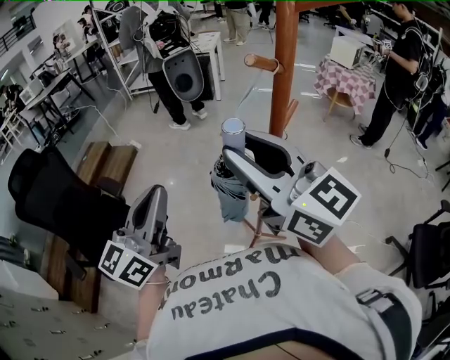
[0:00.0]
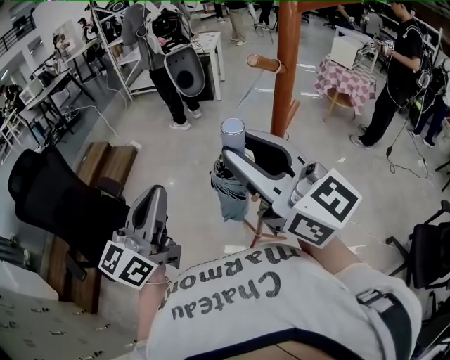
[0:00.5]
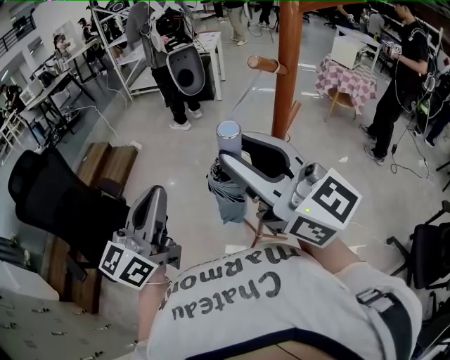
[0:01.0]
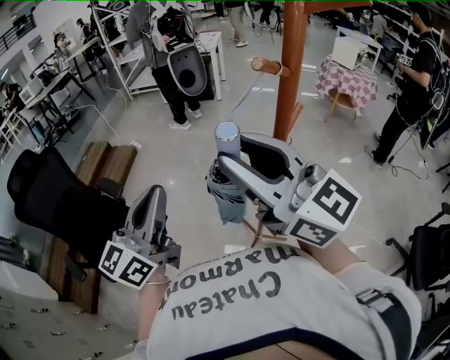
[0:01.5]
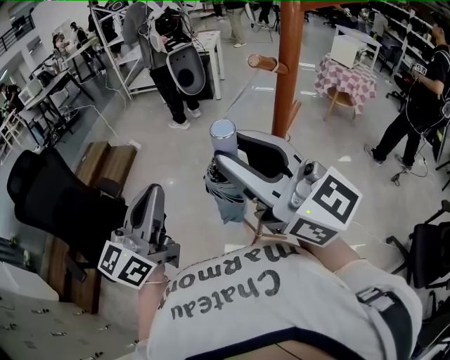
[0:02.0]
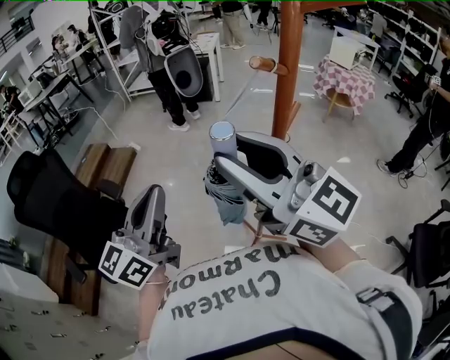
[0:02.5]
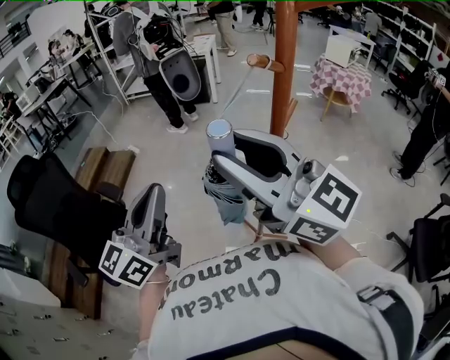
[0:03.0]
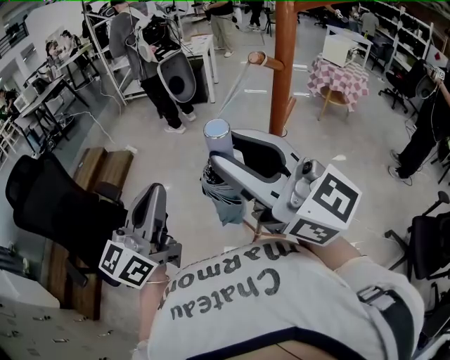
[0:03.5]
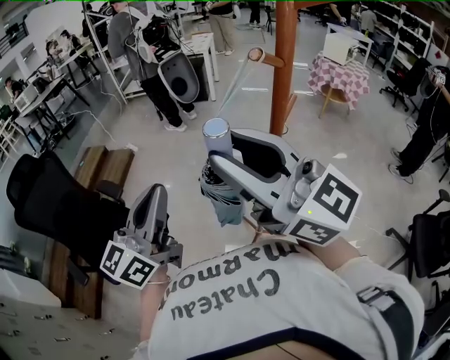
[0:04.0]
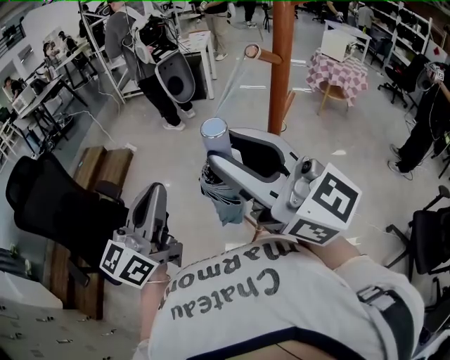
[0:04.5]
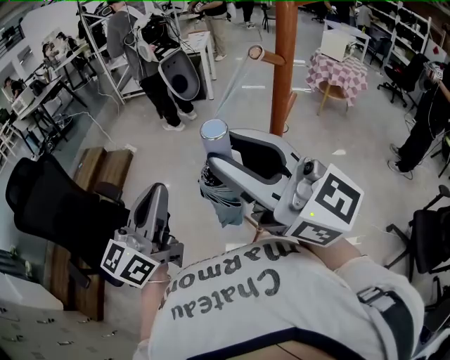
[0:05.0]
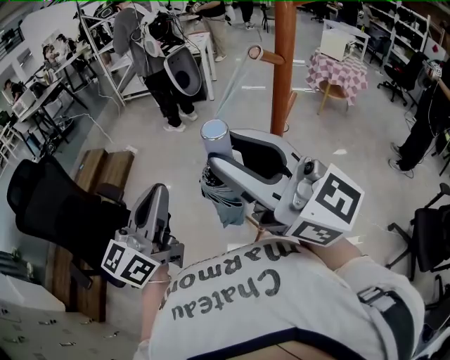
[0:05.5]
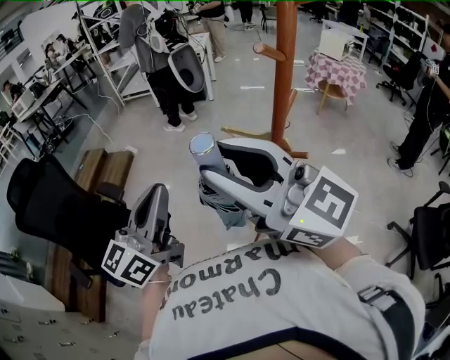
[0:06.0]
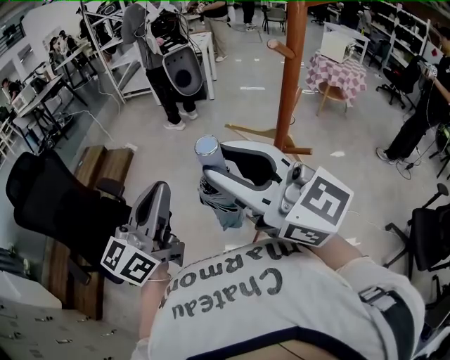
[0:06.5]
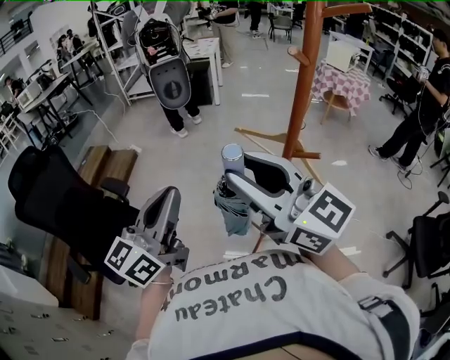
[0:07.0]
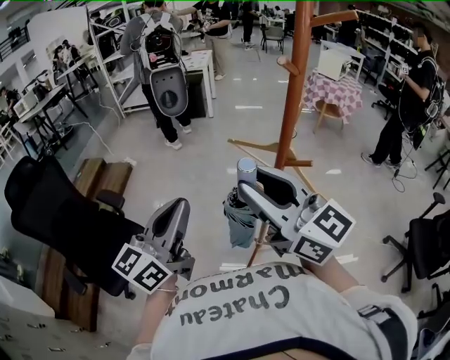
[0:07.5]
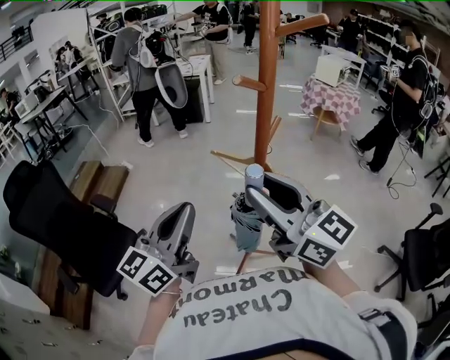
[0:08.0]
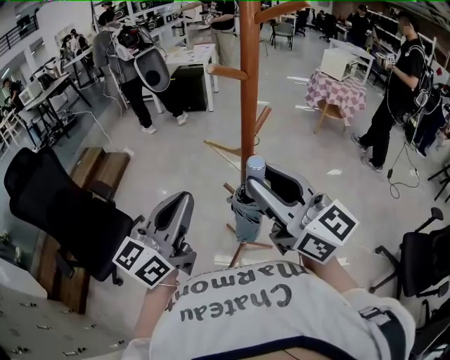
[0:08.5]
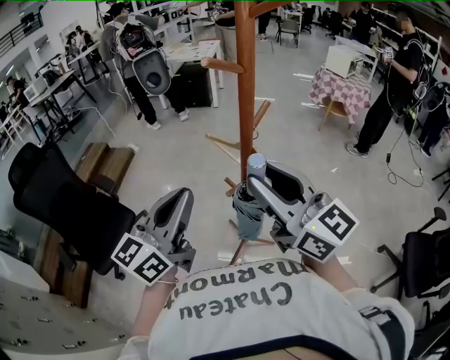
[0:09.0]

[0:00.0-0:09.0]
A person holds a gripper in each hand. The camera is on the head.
0:00.0 to 0:04.5: There are only small adjustments of the grippers.
0:04.5 to 0:07.0: The left gripper moves some 5 cm; the right gripper goes approximately 5 cm downward.
0:07.0 to 0:09.0: Both grippers travel together to the right, approximately 15 cm.

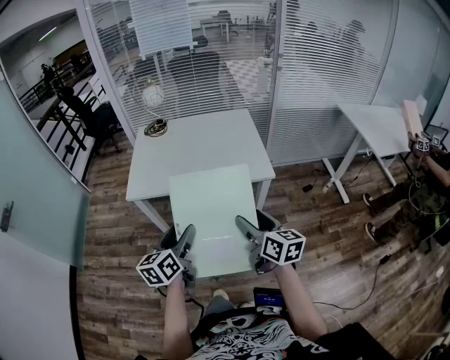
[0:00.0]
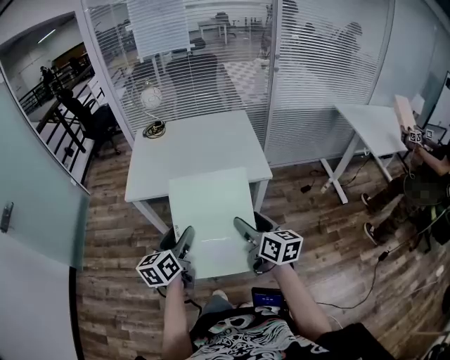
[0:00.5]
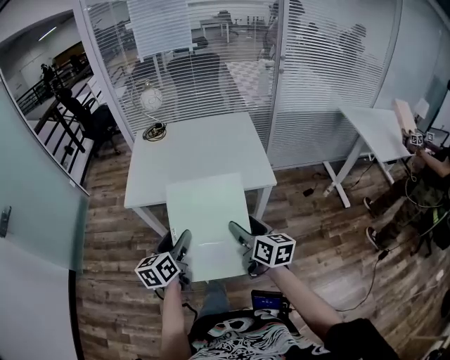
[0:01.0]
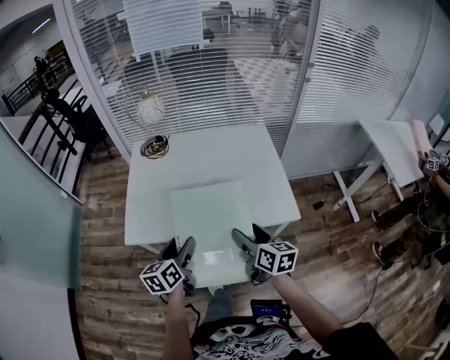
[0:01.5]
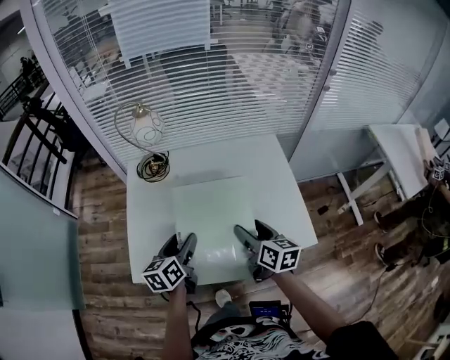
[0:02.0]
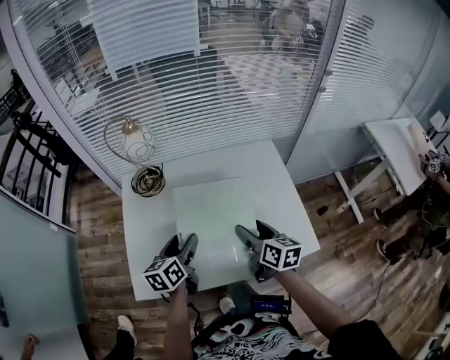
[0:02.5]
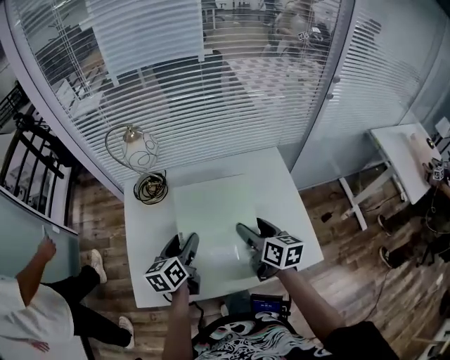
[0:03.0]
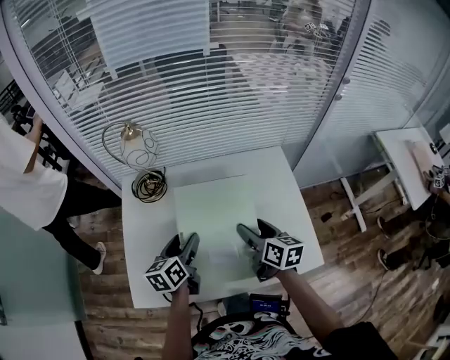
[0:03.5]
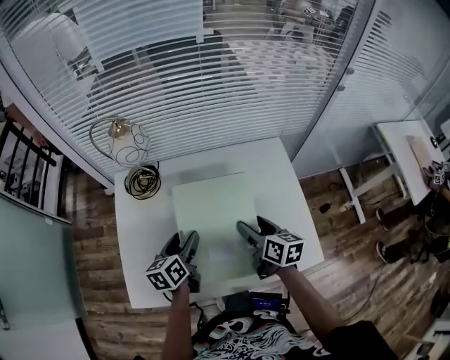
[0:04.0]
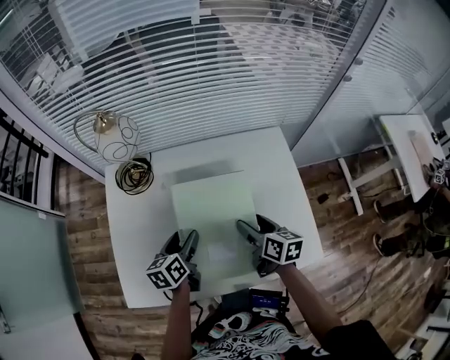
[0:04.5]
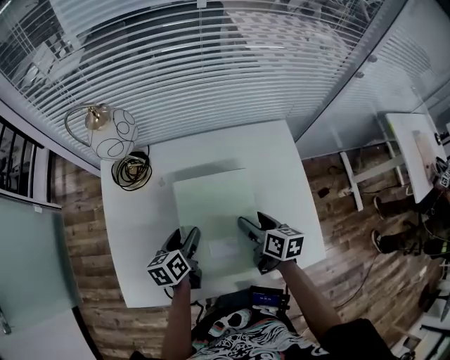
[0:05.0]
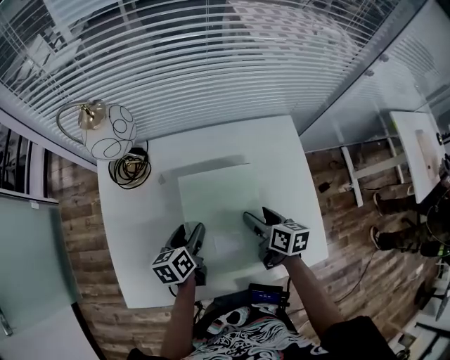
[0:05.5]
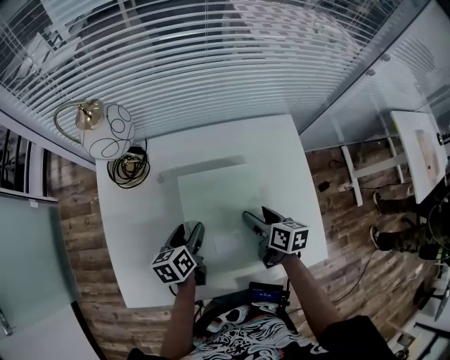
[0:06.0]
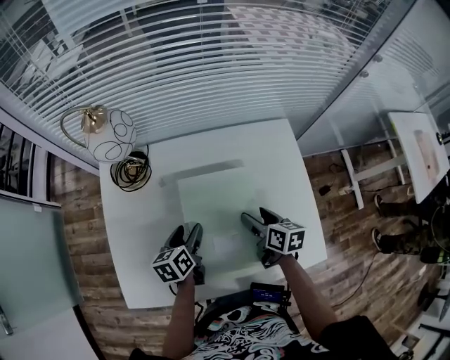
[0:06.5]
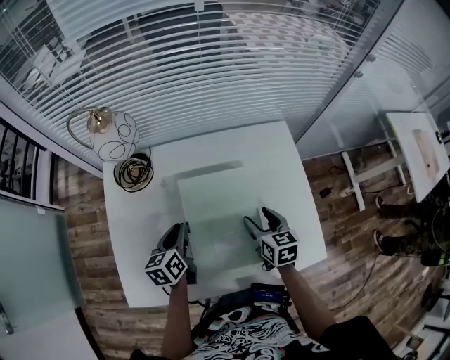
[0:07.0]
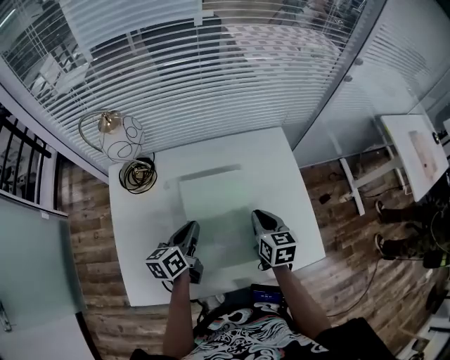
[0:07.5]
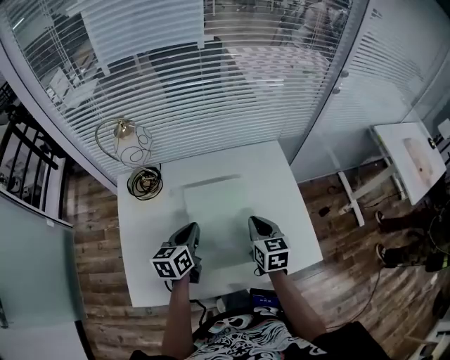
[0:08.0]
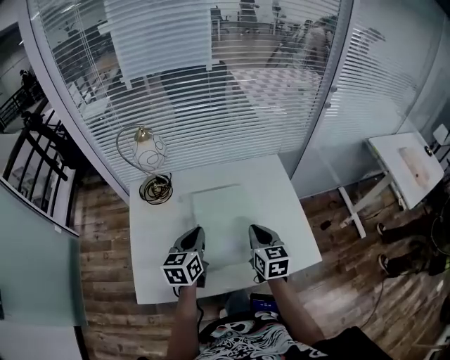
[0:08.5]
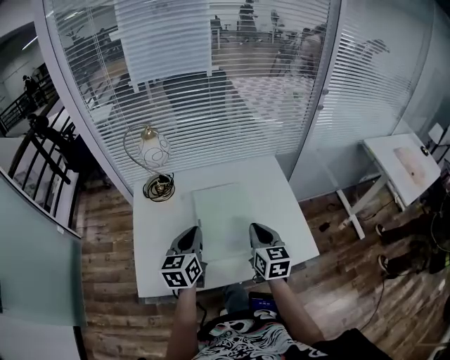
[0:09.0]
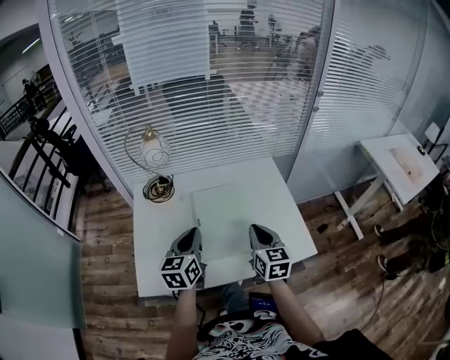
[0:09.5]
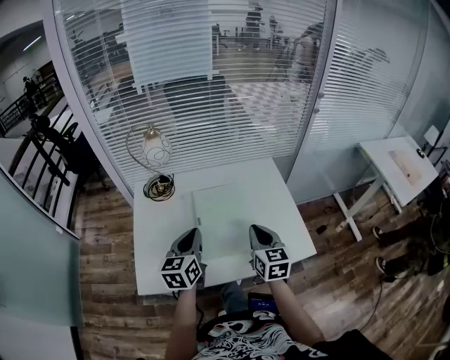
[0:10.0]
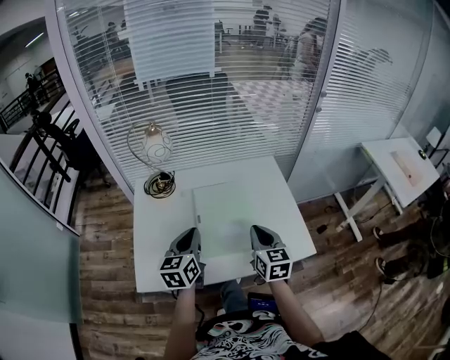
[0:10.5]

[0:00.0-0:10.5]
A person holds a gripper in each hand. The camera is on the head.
0:00.0 to 0:02.0: Both grippers travel together forward, roughly 40 cm.
0:02.0 to 0:04.0: The grippers both shift forward by approximately 10 cm.
0:04.0 to 0:06.5: Both grippers move downward, roughly 10 cm.
0:06.5 to 0:08.5: The left gripper is displaced upward by approximately 15 cm, changes its angle by approximately 30 degrees, and closes up. The right gripper heads upward and backward, covering some 15 cm, changes its angle by about 30 degrees, and closes up.
0:08.5 to 0:10.5: The grippers both shift backward by roughly 5 cm.

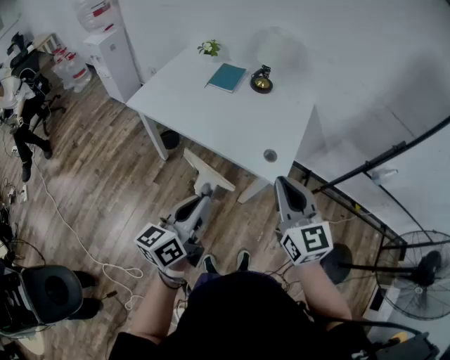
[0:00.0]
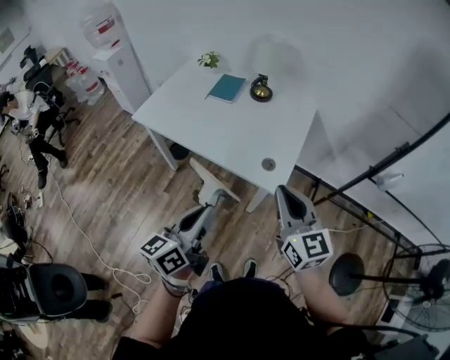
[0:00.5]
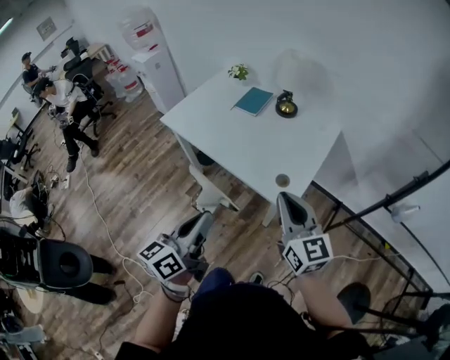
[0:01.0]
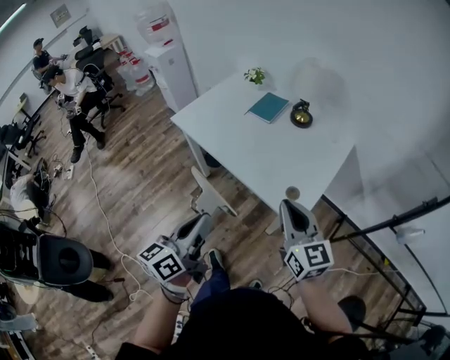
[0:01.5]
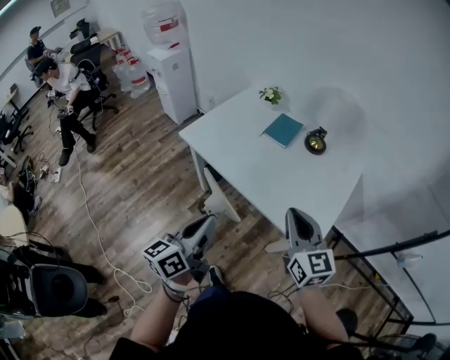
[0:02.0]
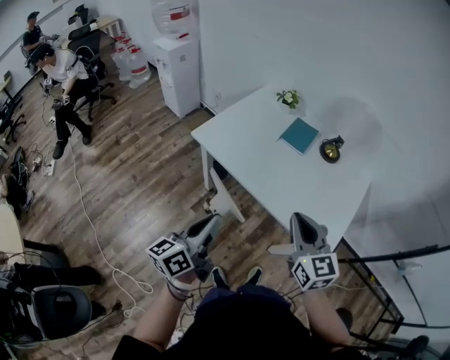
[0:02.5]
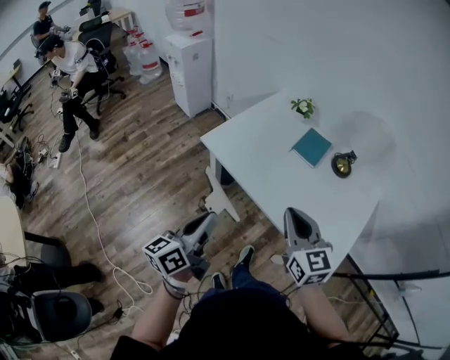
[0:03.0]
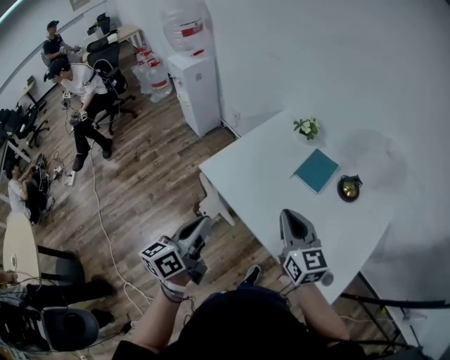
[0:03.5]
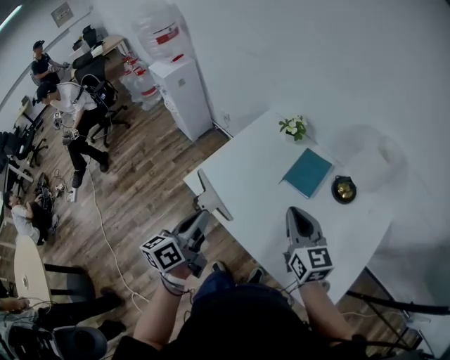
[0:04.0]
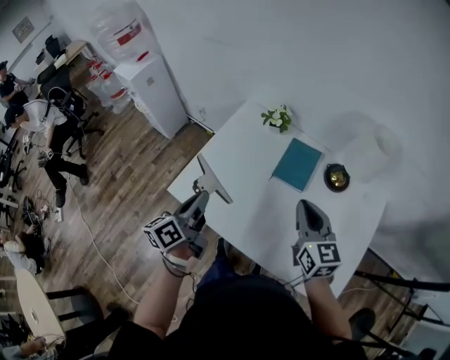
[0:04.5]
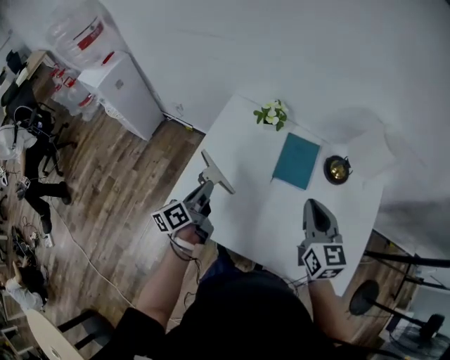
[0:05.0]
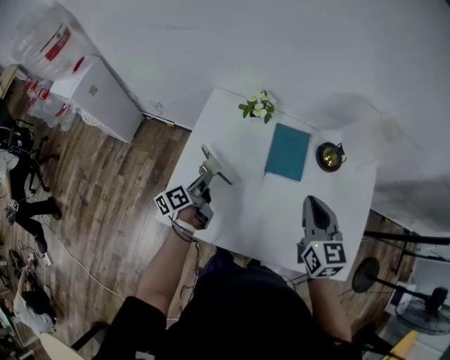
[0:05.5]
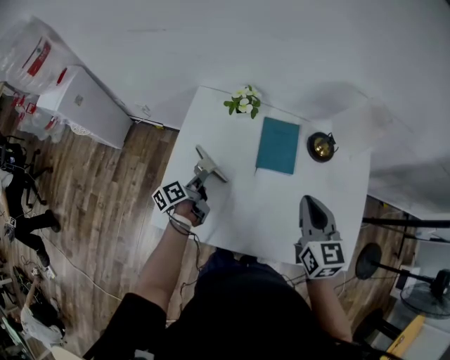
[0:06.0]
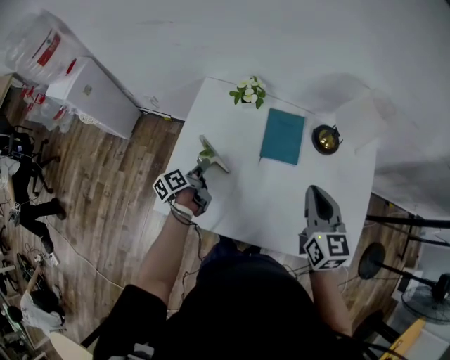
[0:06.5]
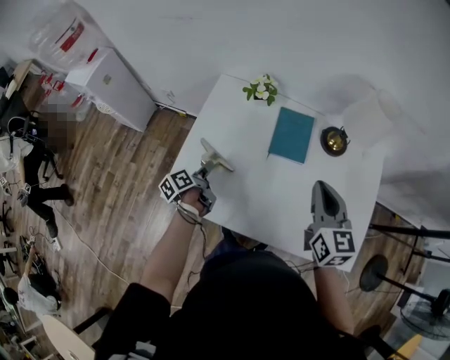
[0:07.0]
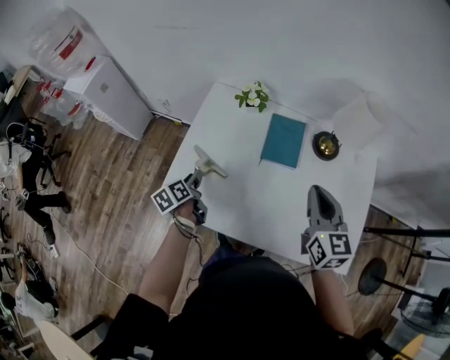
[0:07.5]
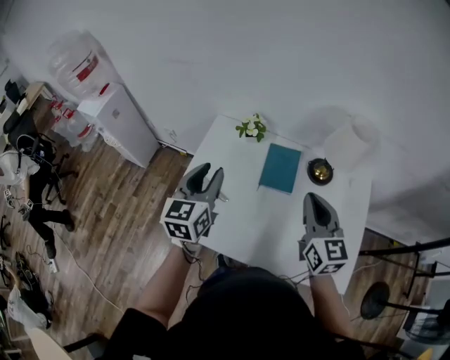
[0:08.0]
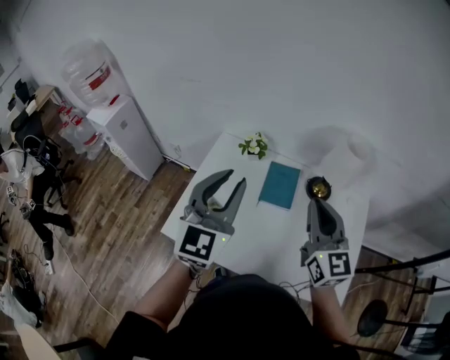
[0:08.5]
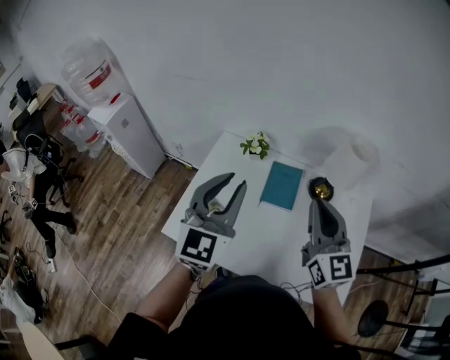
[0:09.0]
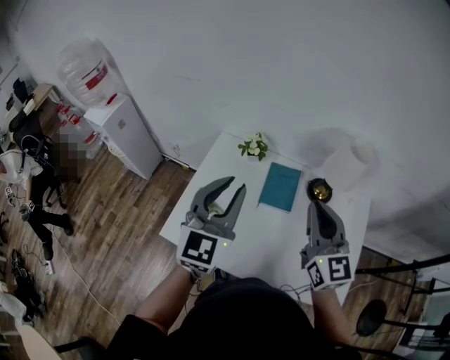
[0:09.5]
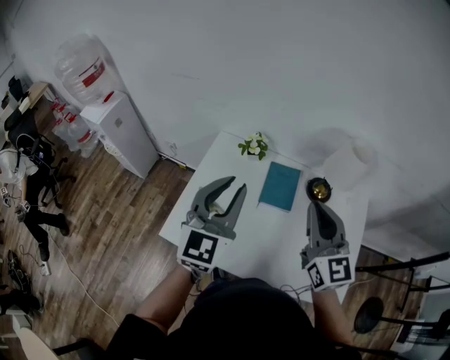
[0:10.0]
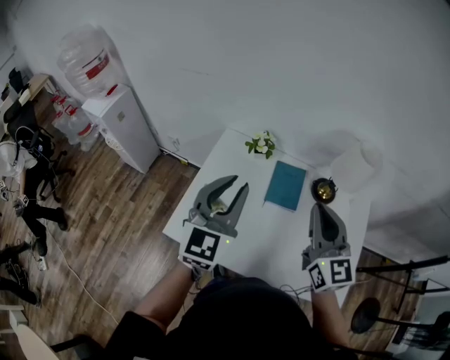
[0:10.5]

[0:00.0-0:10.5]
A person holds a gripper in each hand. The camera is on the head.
0:00.0 to 0:02.0: The two grippers go approximately 15 cm forward and to the left.
0:02.0 to 0:04.0: Both grippers move forward, roughly 35 cm.
0:04.0 to 0:06.5: The right gripper shifts by roughly 10 cm, and turns by roughly 40 degrees. Meanwhile the left gripper ends up about 40 cm from where it was, rotates about 40 degrees, and opens.
0:06.5 to 0:08.5: The left gripper goes approximately 40 cm upward, and rolls clockwise, seen from behind, by some 80 degrees; the right gripper travels upward by roughly 15 cm, and turns by some 20 degrees.
0:08.5 to 0:10.5: The left gripper ends up about 5 cm from where it was.
